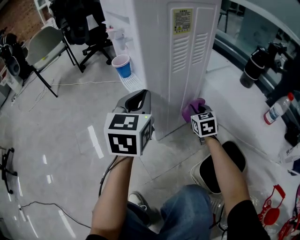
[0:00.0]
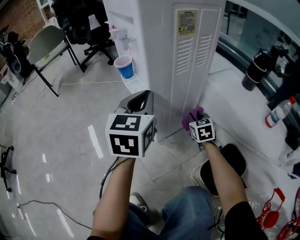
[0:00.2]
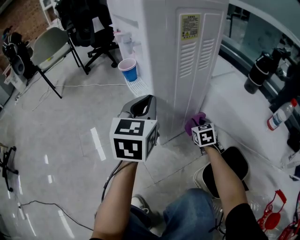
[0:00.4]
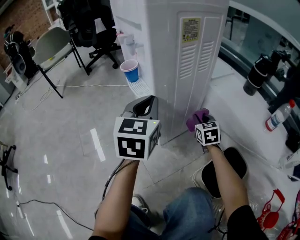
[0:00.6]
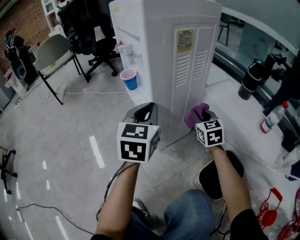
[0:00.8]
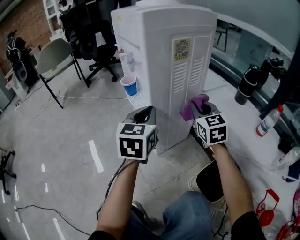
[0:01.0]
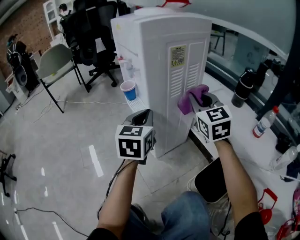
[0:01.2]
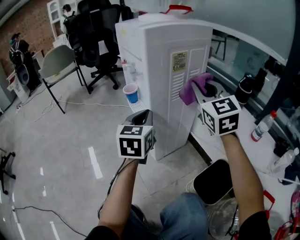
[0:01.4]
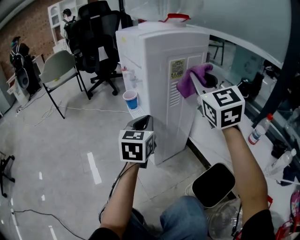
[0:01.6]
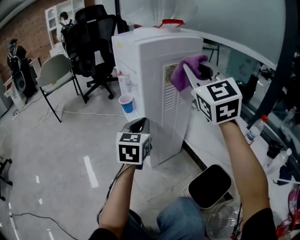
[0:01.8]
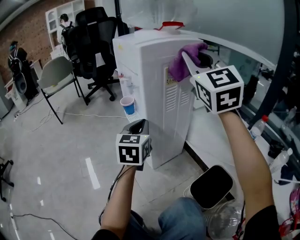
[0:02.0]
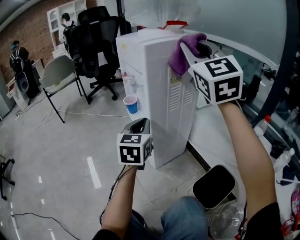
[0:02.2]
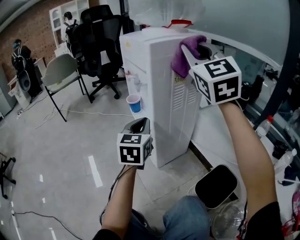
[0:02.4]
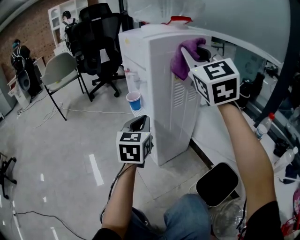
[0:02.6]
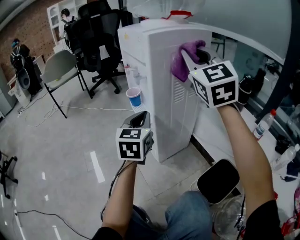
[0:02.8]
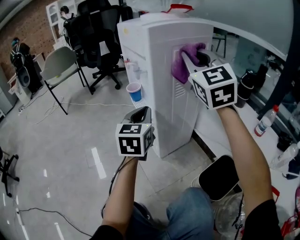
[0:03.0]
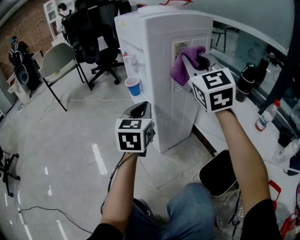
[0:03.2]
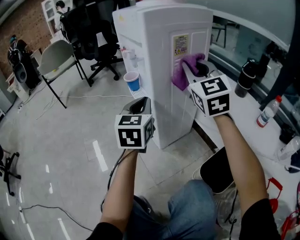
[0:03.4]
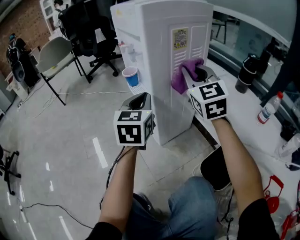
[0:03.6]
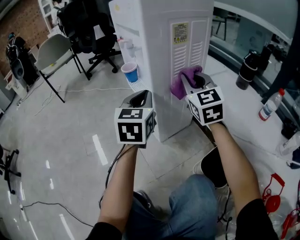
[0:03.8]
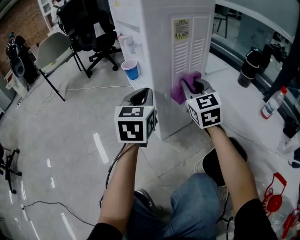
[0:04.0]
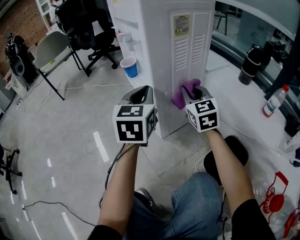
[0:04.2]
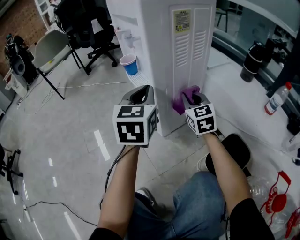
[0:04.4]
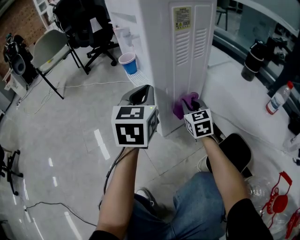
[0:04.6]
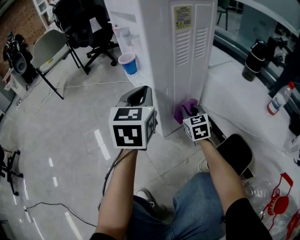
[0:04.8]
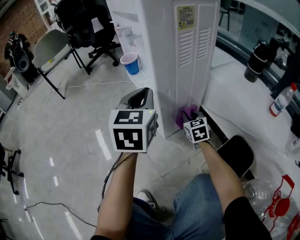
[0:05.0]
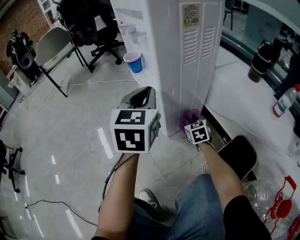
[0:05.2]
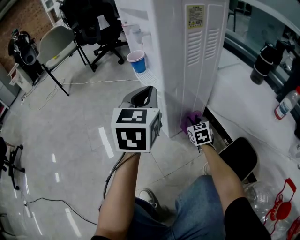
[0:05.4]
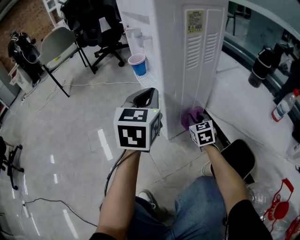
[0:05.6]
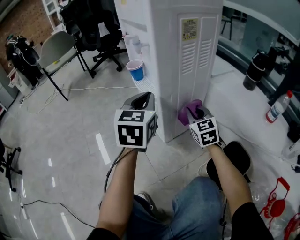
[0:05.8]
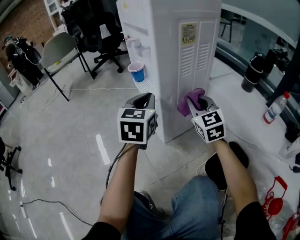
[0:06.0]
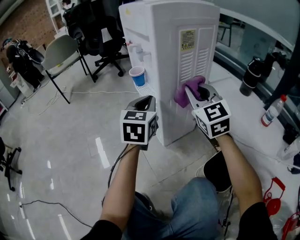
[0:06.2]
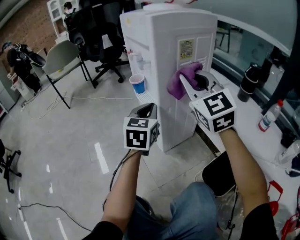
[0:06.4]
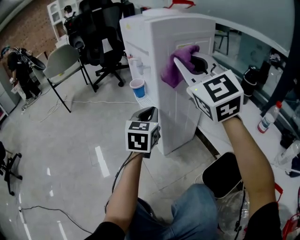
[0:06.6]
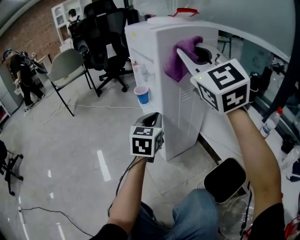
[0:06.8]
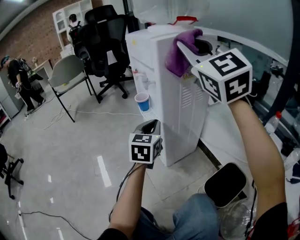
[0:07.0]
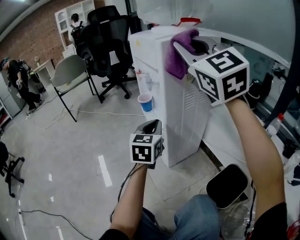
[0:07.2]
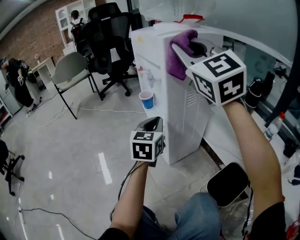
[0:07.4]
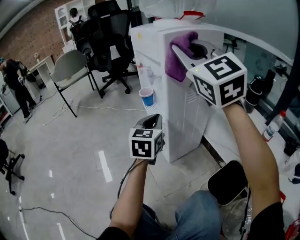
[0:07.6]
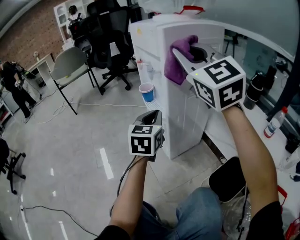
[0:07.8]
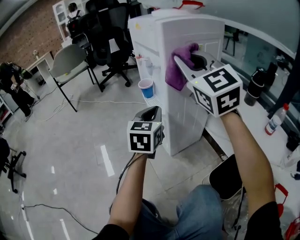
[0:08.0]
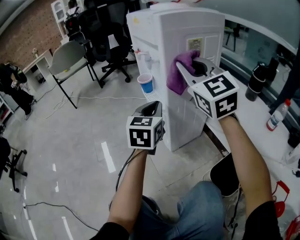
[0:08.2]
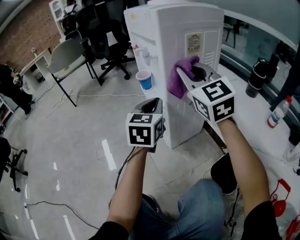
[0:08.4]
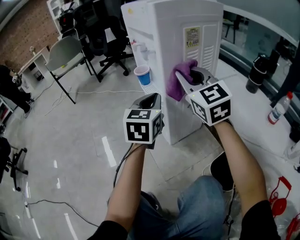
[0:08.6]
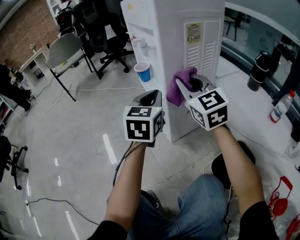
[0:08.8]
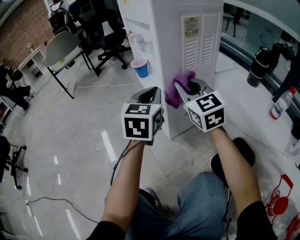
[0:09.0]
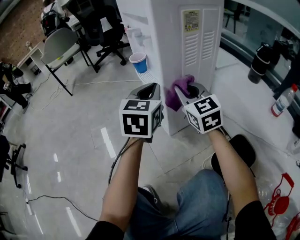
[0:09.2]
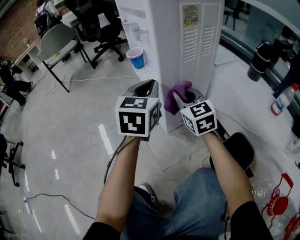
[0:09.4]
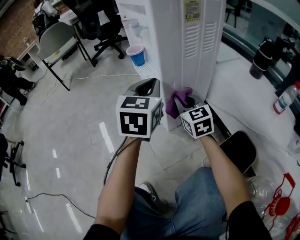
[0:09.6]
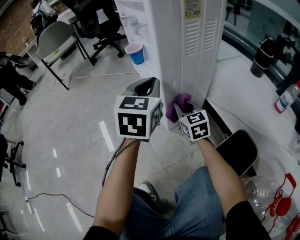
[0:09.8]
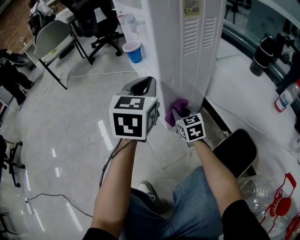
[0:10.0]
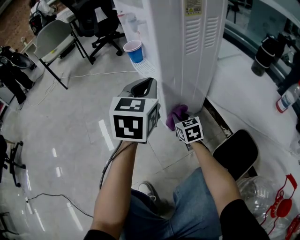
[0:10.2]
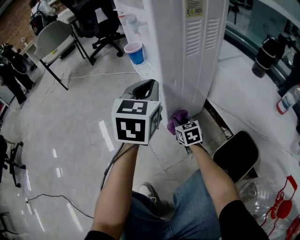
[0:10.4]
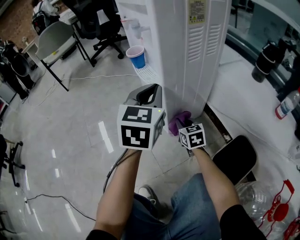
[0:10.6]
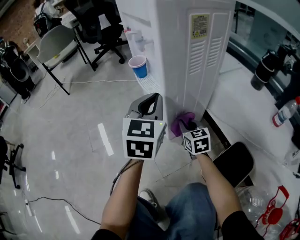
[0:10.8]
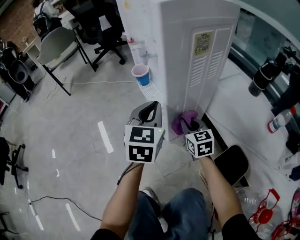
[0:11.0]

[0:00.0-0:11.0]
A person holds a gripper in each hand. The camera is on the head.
0:00.0 to 0:01.6: The right gripper travels upward by some 40 cm, and tips its fingers upward by roughly 30 degrees.
0:01.6 to 0:03.2: The right gripper moves approximately 10 cm upward and comes back.
0:03.2 to 0:04.8: The right gripper heads downward, covering roughly 40 cm, and swivels some 30 degrees.
0:04.8 to 0:06.2: The right gripper shifts some 25 cm upward, and swivels about 30 degrees.
0:06.2 to 0:07.8: The right gripper is displaced upward by some 20 cm.
0:07.8 to 0:09.4: The right gripper goes roughly 35 cm downward, and rotates roughly 30 degrees.
0:09.4 to 0:11.0: The right gripper travels downward and back again, roughly 20 cm each way.

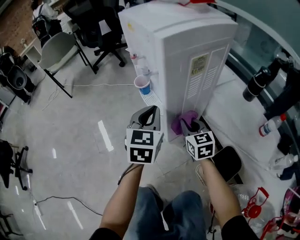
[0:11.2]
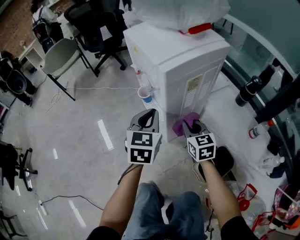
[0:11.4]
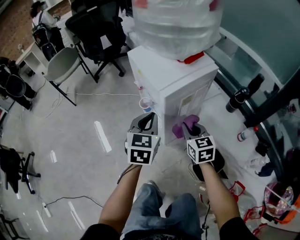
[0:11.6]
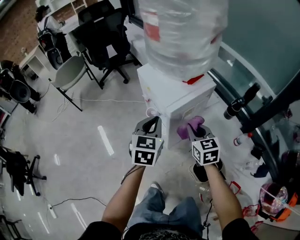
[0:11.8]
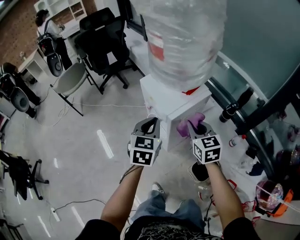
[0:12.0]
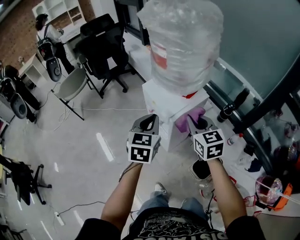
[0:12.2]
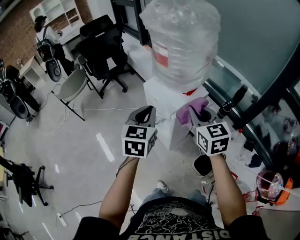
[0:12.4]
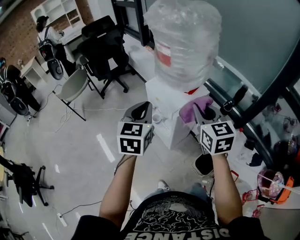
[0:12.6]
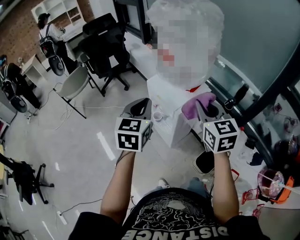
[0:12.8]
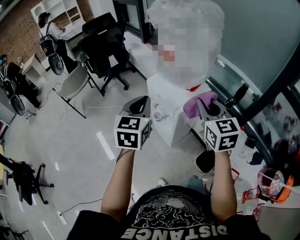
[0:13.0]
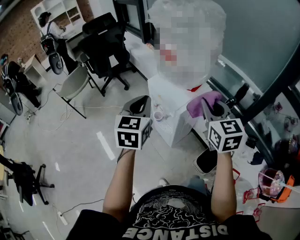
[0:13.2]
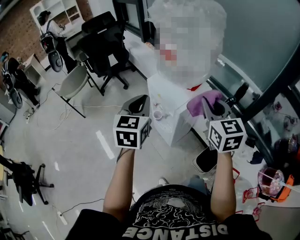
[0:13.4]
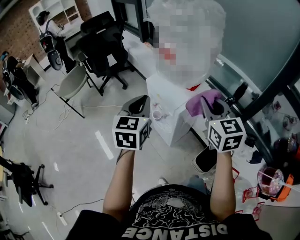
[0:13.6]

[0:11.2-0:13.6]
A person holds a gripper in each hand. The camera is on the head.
0:11.2 to 0:12.4: Both grippers move upward, about 50 cm.
0:12.4 to 0:13.6: The grippers move only a little.

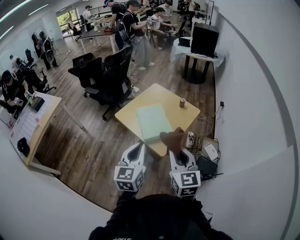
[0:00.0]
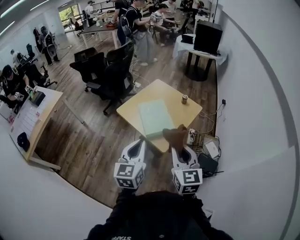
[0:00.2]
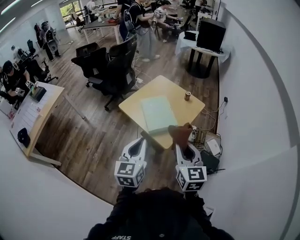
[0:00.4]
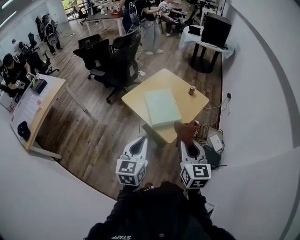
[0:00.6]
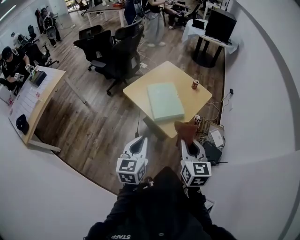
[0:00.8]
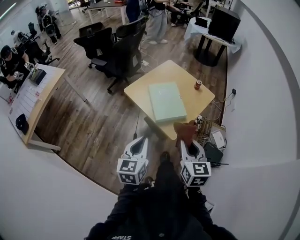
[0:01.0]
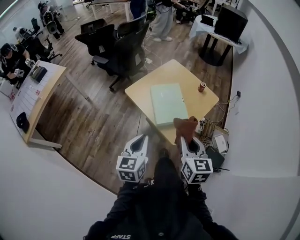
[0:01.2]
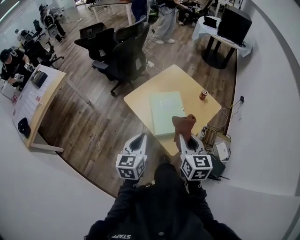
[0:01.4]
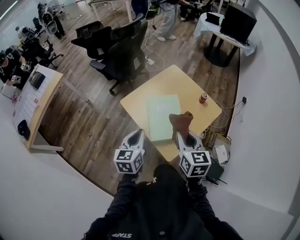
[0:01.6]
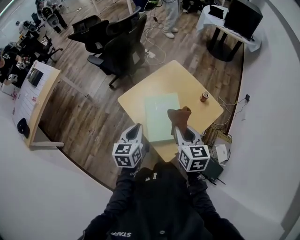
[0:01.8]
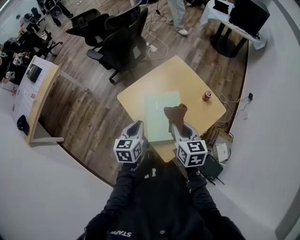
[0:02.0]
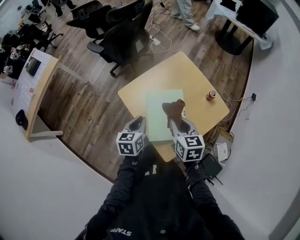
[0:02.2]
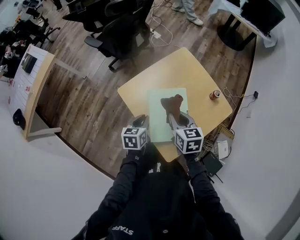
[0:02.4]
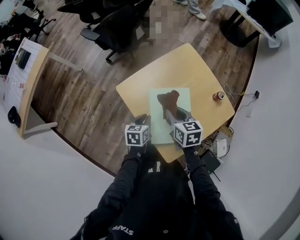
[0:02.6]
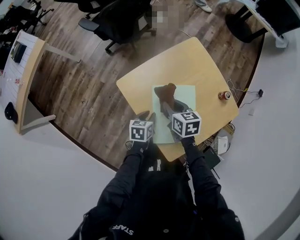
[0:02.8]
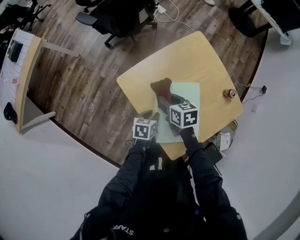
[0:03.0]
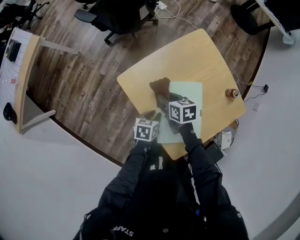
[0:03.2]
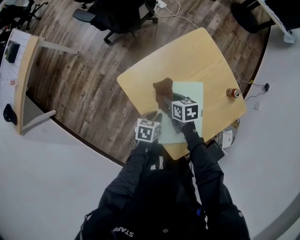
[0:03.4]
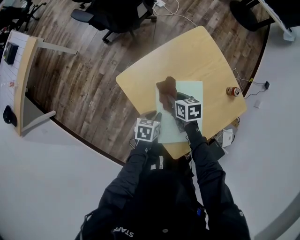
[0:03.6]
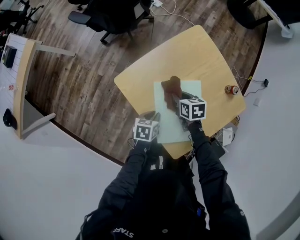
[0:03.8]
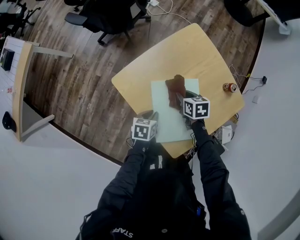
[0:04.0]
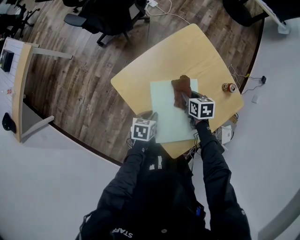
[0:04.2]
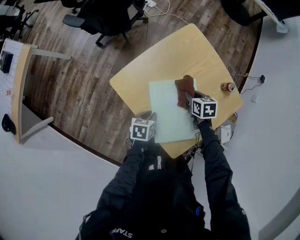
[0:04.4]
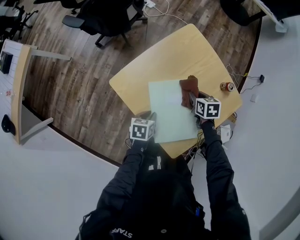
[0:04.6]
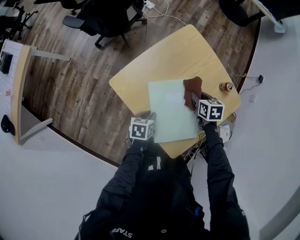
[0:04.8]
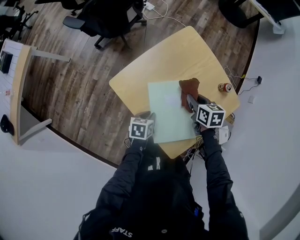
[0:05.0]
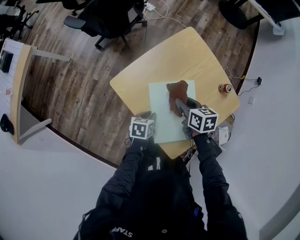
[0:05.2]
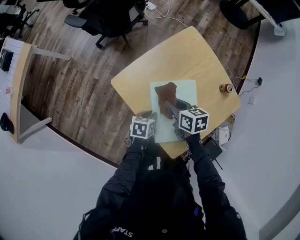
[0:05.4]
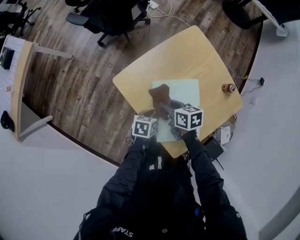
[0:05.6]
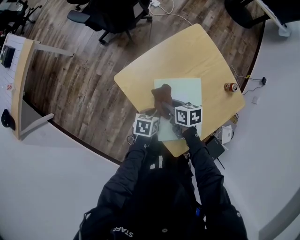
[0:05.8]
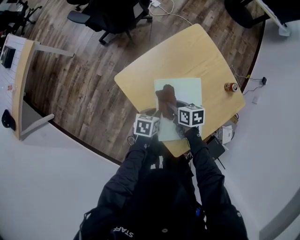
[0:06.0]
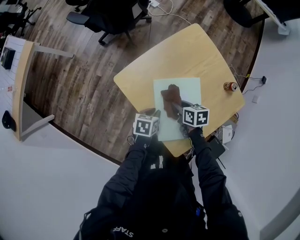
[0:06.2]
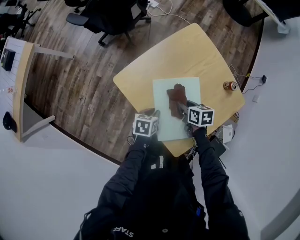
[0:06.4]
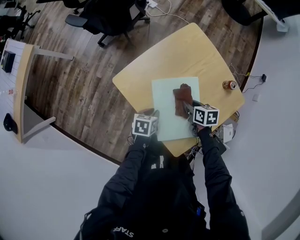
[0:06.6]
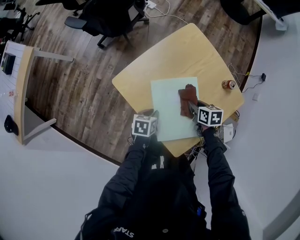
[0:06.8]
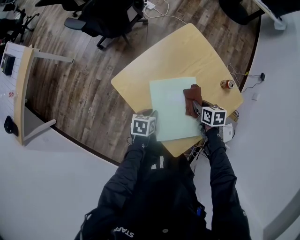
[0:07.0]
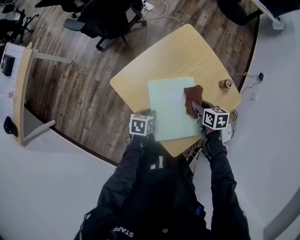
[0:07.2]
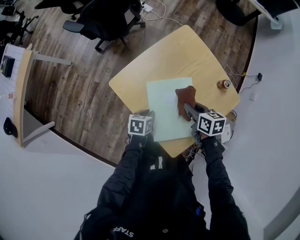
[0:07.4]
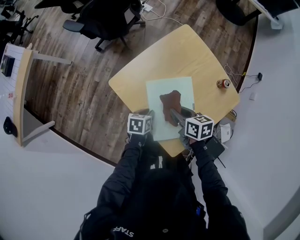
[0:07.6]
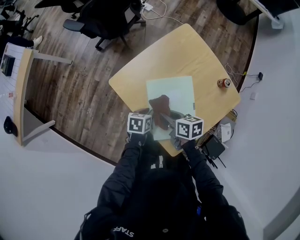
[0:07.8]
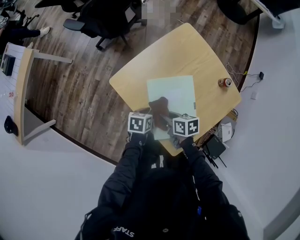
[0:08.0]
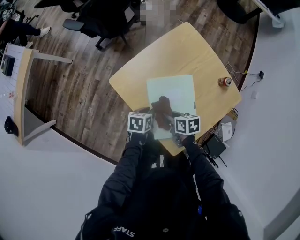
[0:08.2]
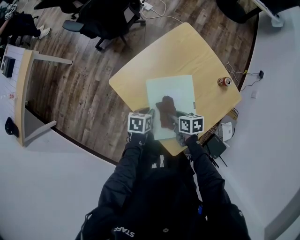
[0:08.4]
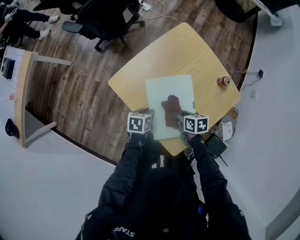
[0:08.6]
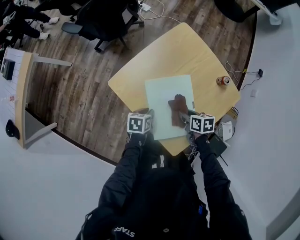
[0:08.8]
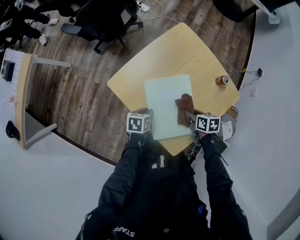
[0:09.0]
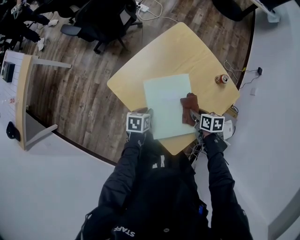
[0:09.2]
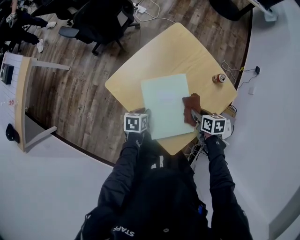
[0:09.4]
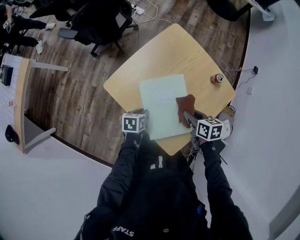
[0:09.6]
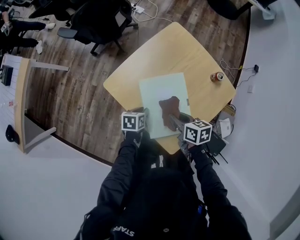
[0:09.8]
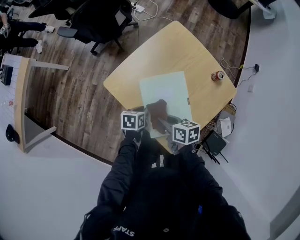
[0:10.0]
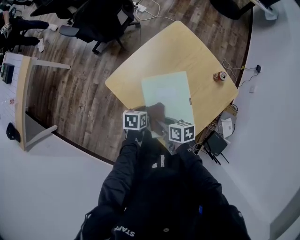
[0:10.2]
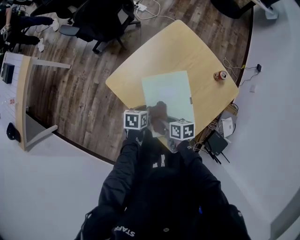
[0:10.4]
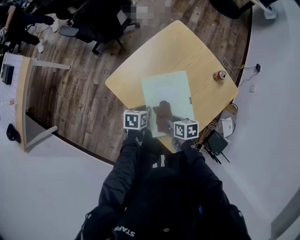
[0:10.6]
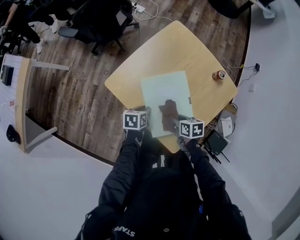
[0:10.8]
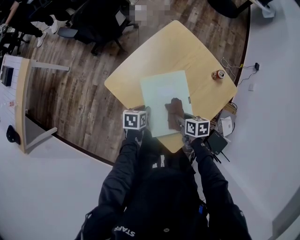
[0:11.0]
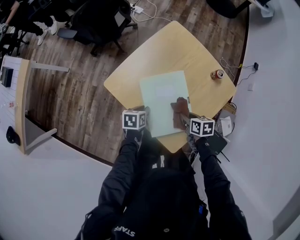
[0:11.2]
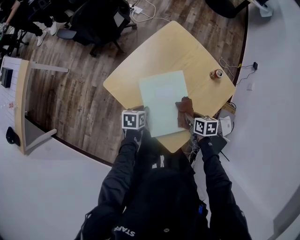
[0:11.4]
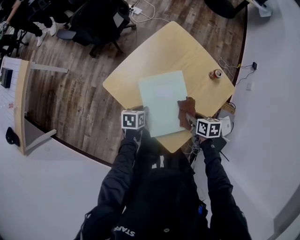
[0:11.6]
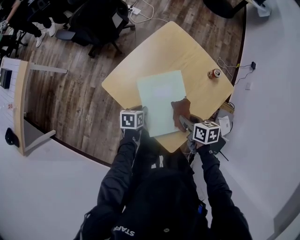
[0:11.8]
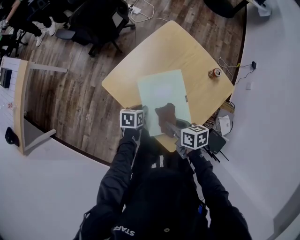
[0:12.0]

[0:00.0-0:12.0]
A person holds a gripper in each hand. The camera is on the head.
0:00.0 to 0:01.6: The grippers both shift forward and downward by some 30 cm.
0:01.6 to 0:03.0: The left gripper goes about 35 cm downward and forward, and swivels approximately 40 degrees, while the right gripper is displaced forward, downward and to the left by roughly 40 cm, and turns by approximately 40 degrees.
0:03.0 to 0:04.4: The right gripper heads to the right and downward, covering roughly 15 cm.
0:04.4 to 0:06.0: The right gripper goes roughly 15 cm to the left and backward.
0:06.0 to 0:07.6: The right gripper heads upward, covering approximately 10 cm, and moves approximately 15 cm to the right and comes back.
0:07.6 to 0:09.0: The right gripper goes about 15 cm to the right and downward.
0:09.0 to 0:10.4: The right gripper is displaced to the left and backward by approximately 15 cm.
0:10.4 to 0:12.0: The right gripper goes approximately 5 cm upward, and moves some 15 cm to the right and comes back.
